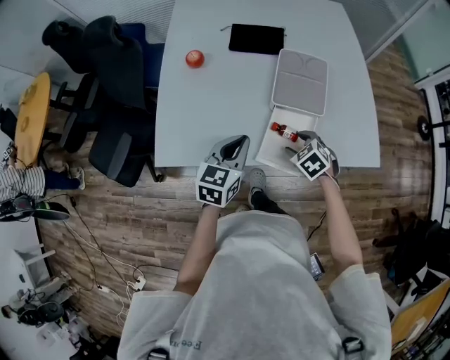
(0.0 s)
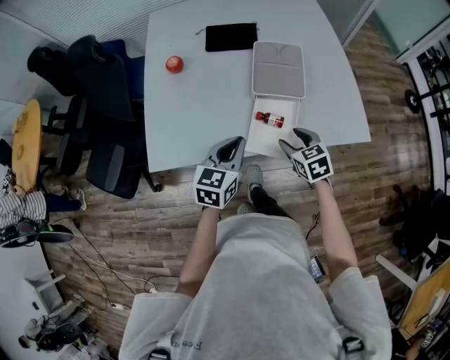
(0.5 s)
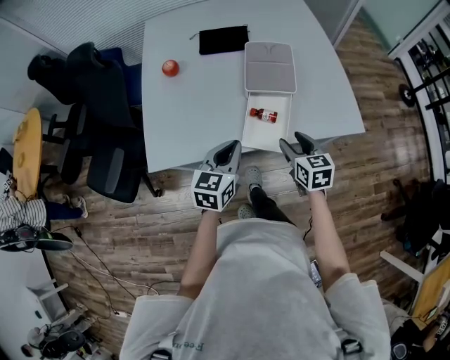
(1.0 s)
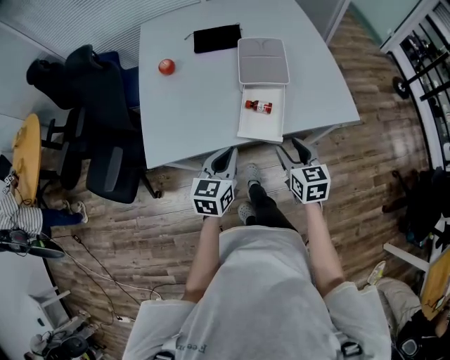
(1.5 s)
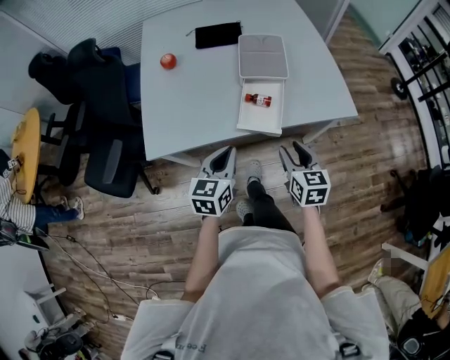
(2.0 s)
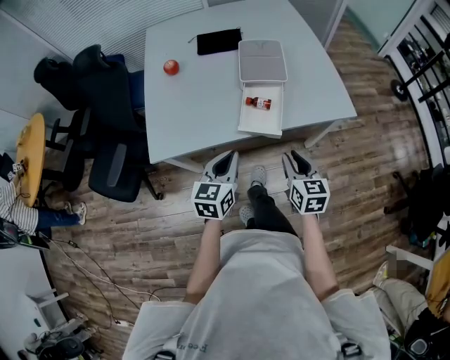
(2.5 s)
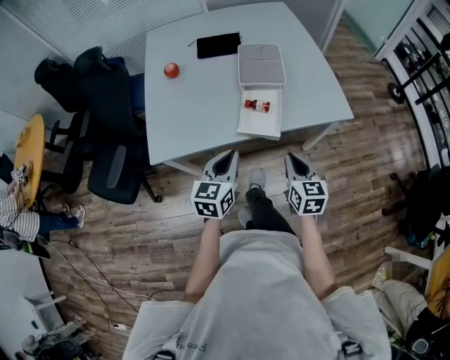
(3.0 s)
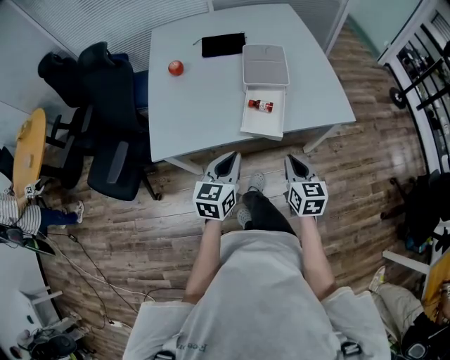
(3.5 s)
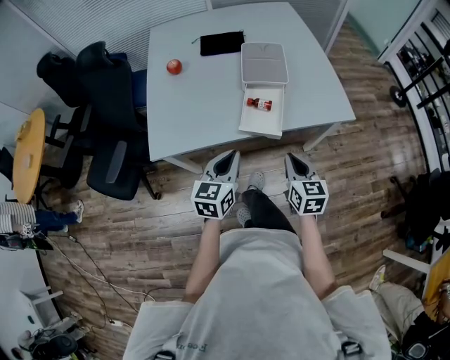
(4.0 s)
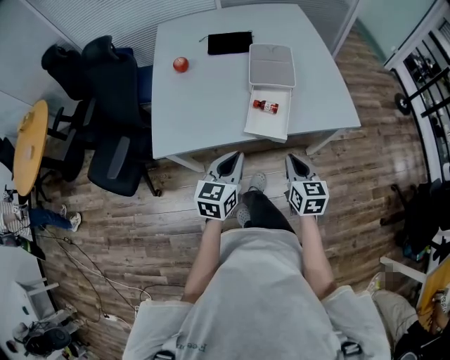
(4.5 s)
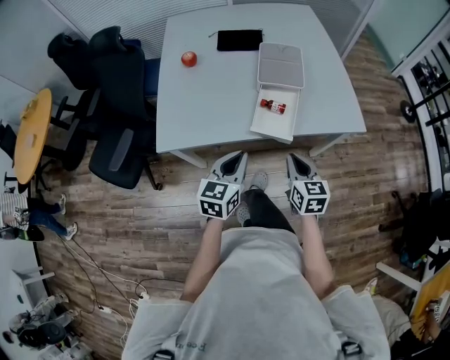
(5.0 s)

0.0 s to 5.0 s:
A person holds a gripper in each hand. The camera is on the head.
0.0 to 2.5 s: The left gripper goes approximately 15 cm backward; the right gripper travels backward and upward by some 25 cm, points its fingers about 40 degrees further upward, and closes up.
2.5 to 5.0 s: The right gripper closes.

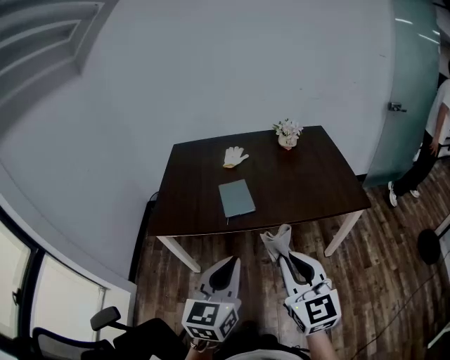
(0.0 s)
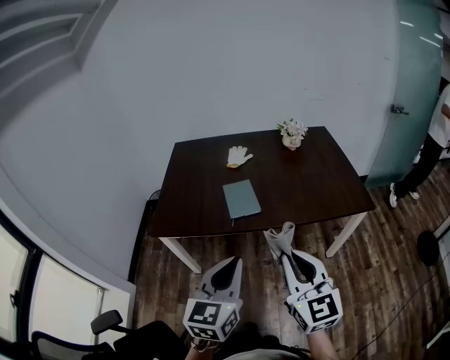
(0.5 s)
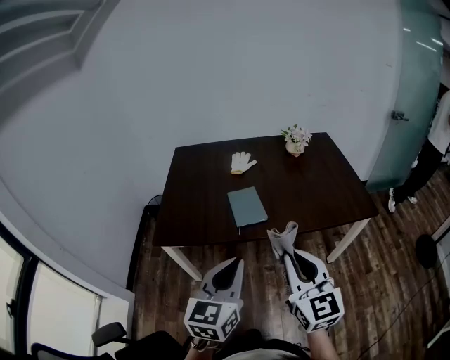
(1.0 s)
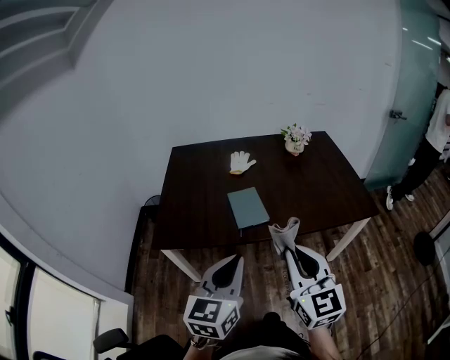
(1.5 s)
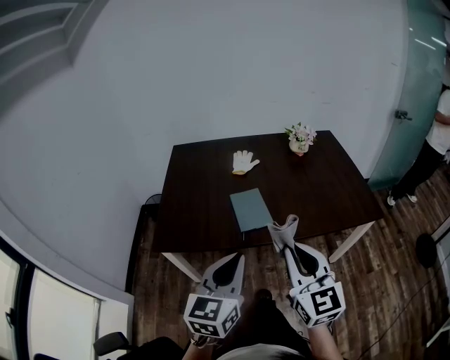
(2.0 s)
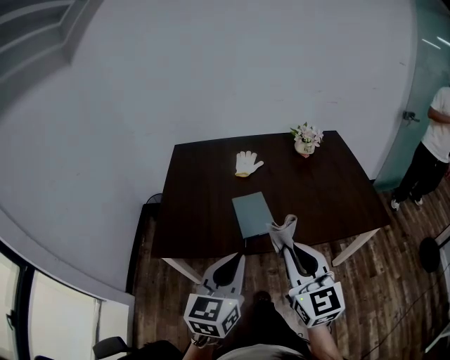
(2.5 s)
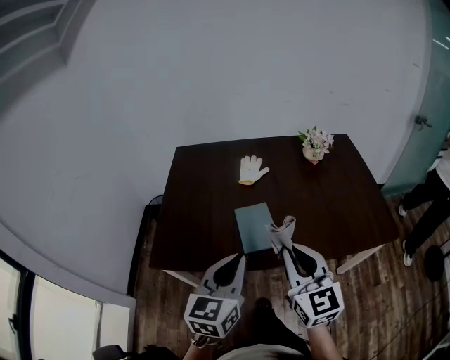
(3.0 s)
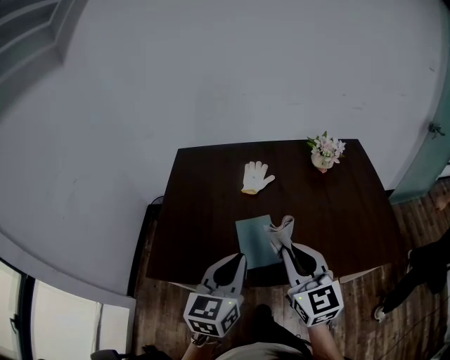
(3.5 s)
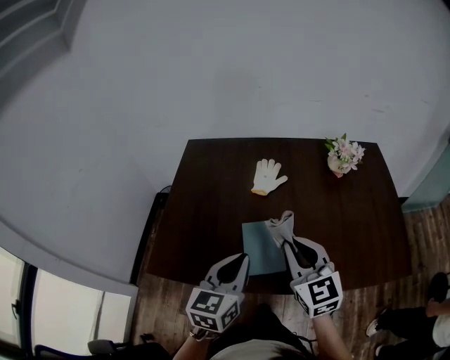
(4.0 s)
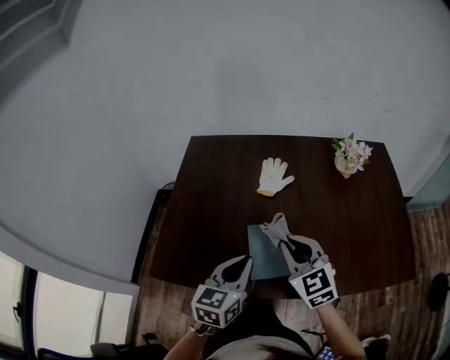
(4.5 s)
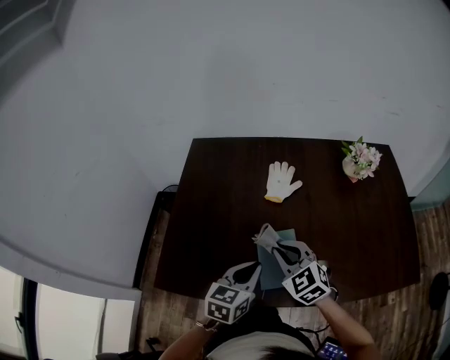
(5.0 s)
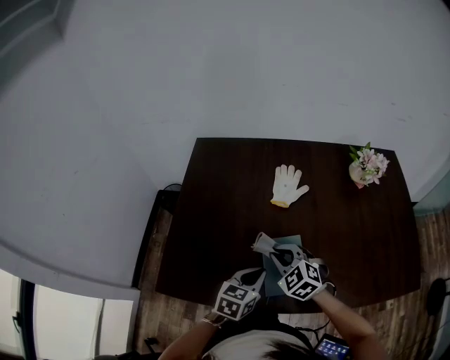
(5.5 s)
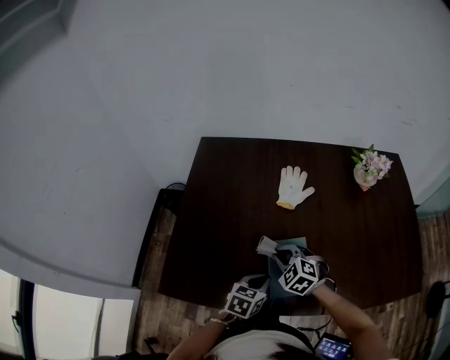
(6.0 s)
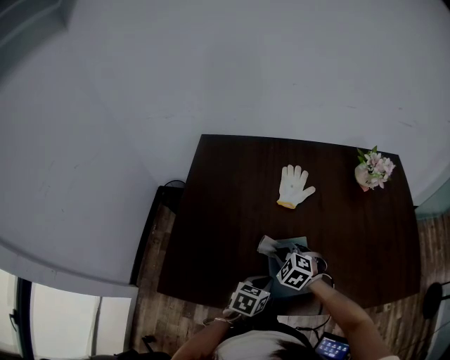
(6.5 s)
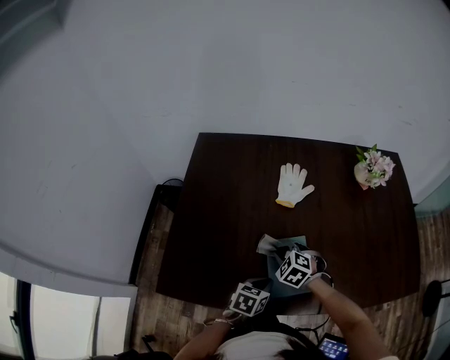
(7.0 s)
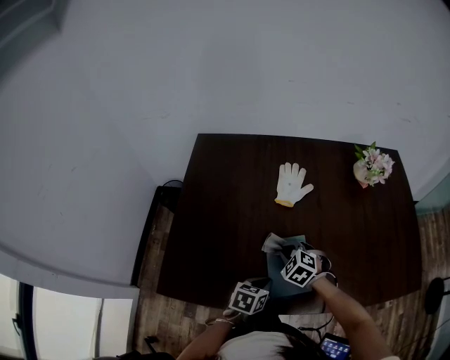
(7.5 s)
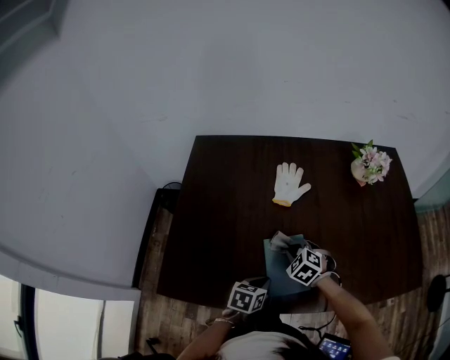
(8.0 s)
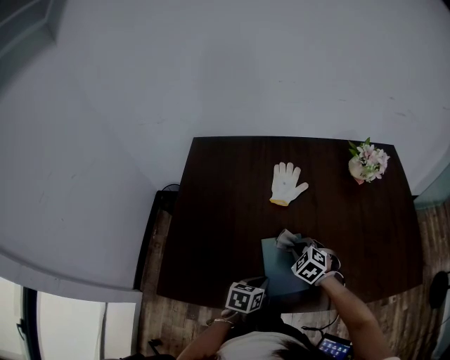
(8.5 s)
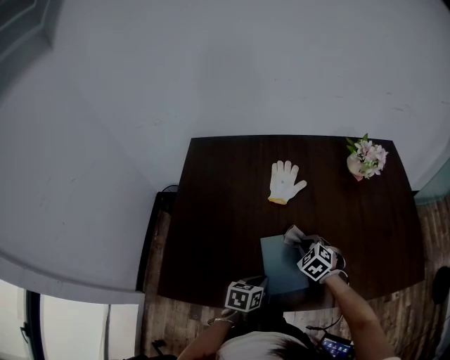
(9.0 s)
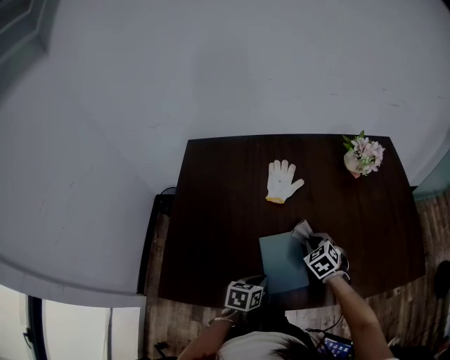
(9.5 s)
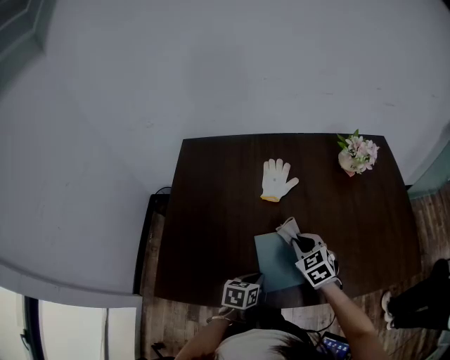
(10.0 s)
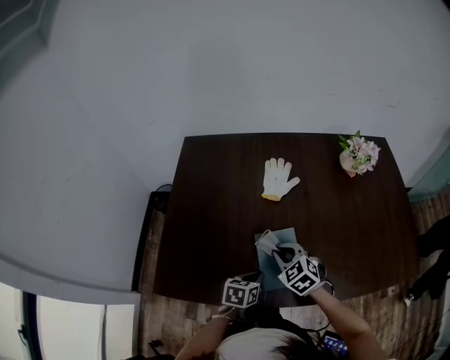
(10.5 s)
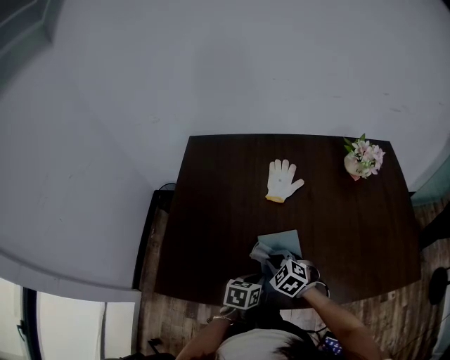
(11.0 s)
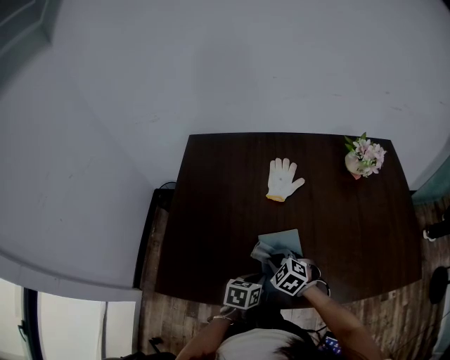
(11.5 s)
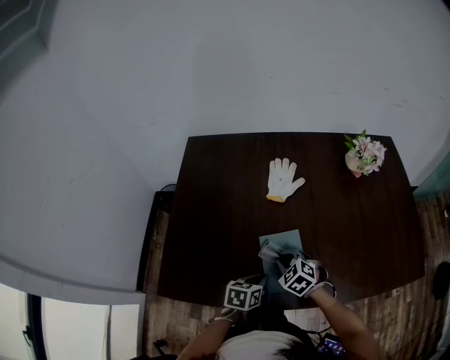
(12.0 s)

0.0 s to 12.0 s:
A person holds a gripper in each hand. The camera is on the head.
0.0 to 2.0 s: Both grippers travel together forward and to the left, approximately 15 cm.
2.0 to 4.0 s: Both grippers travel together forward, about 30 cm.
4.0 to 6.0 s: The left gripper heads downward, covering approximately 20 cm, and rotates approximately 30 degrees. The right gripper is displaced downward, to the left and forward by roughly 30 cm, and tilts its fingers about 40 degrees downward.
6.0 to 8.0 s: The right gripper is displaced to the right by roughly 5 cm.
8.0 to 10.0 s: The right gripper is displaced upward and to the right by about 10 cm, and turns by approximately 30 degrees.
10.0 to 12.0 s: The right gripper heads to the left and downward, covering roughly 10 cm, and turns by roughly 20 degrees.

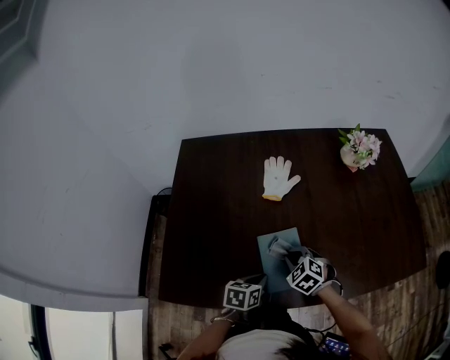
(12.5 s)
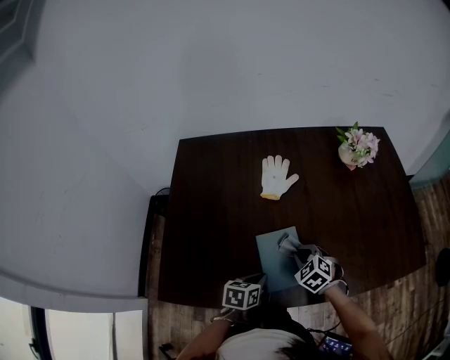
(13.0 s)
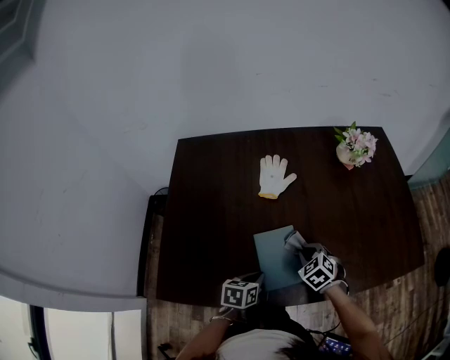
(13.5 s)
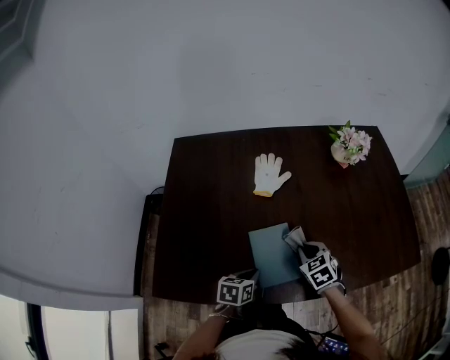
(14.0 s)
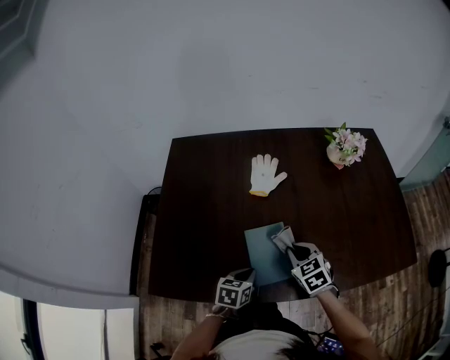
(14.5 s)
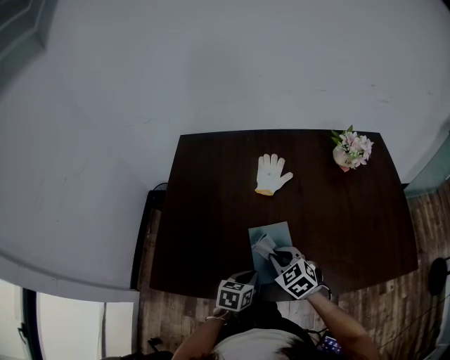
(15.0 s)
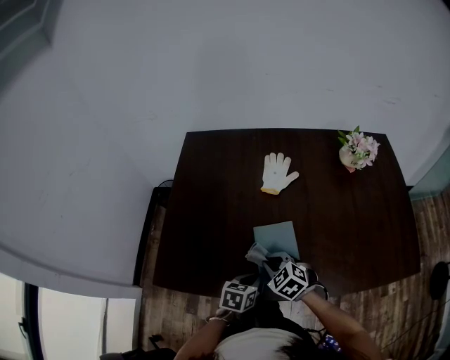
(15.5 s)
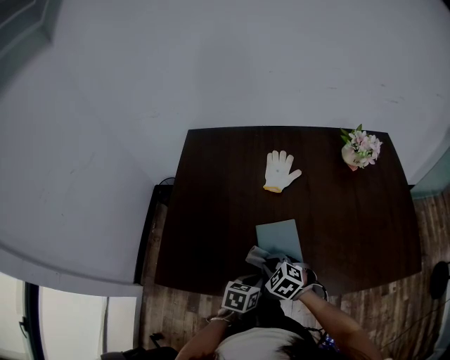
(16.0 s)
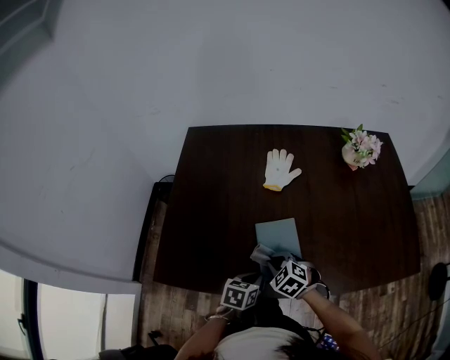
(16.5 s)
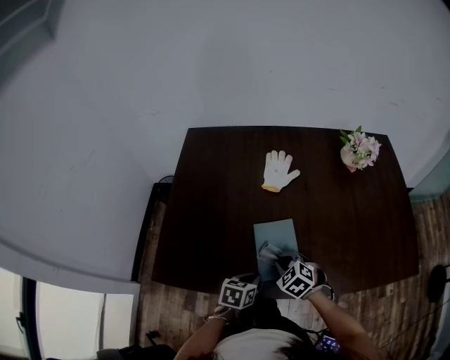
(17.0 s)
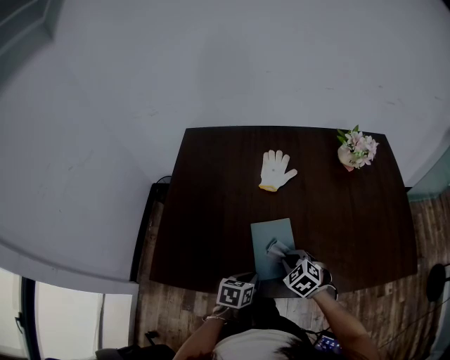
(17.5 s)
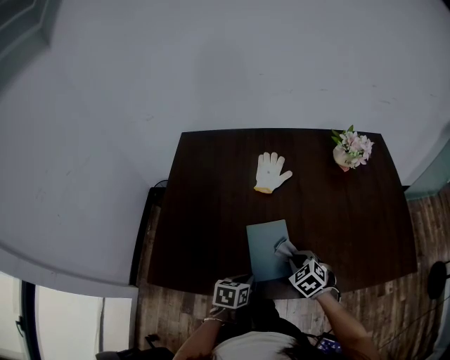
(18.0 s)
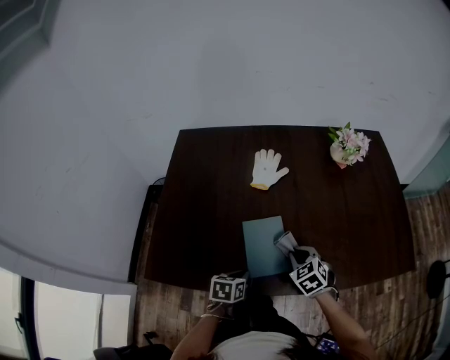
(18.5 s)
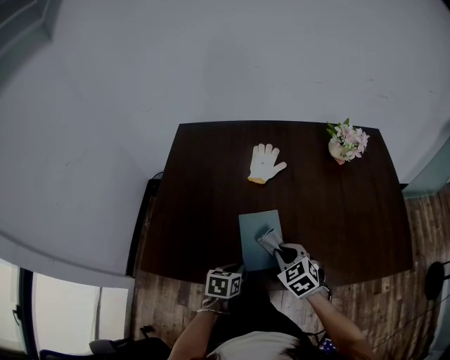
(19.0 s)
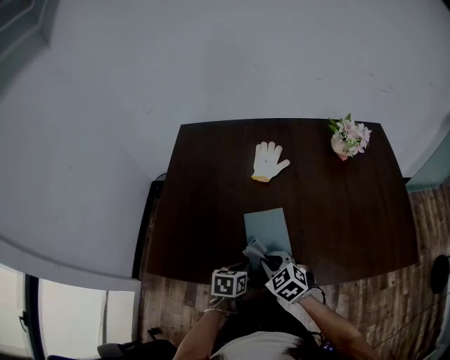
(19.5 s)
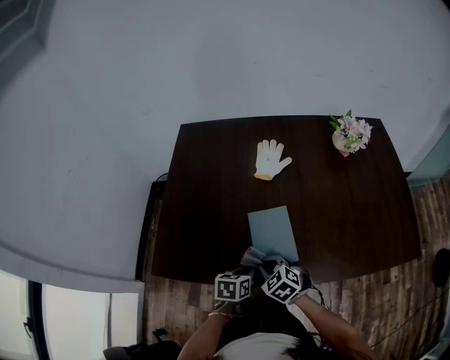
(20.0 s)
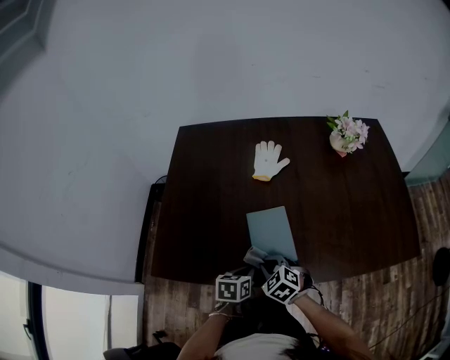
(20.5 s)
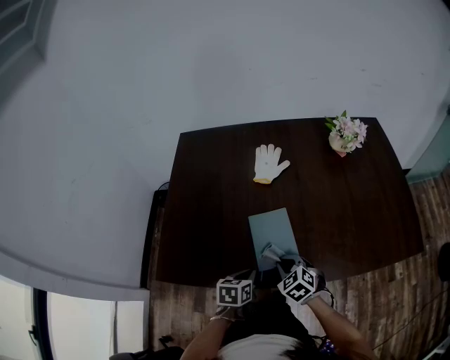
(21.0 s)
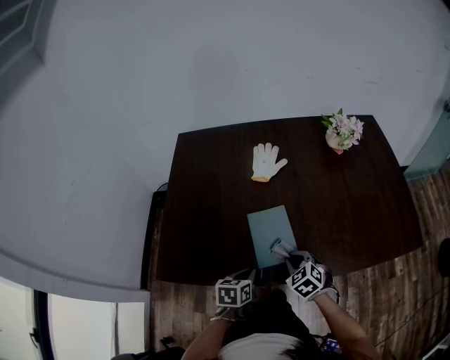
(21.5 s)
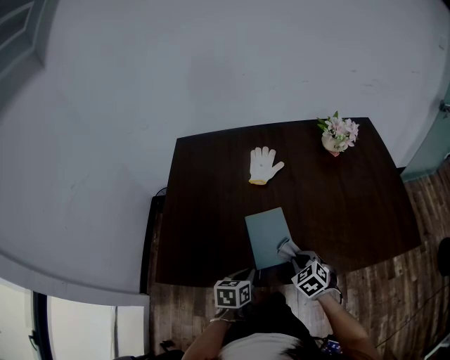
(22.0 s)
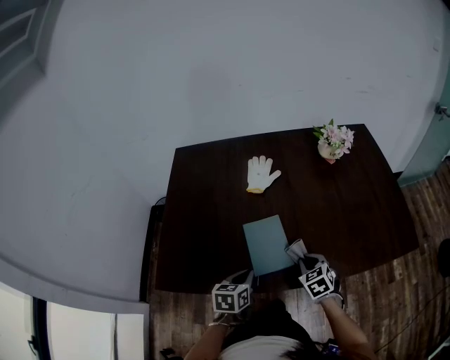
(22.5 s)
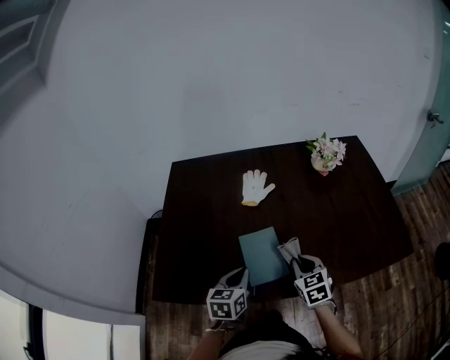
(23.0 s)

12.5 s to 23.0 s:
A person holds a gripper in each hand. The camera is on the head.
12.5 to 14.5 s: The right gripper shifts some 10 cm to the right and upward, and turns by about 20 degrees.
14.5 to 16.5 s: The right gripper shifts about 10 cm to the left and backward, and changes its angle by some 30 degrees.
16.5 to 19.0 s: The right gripper goes roughly 10 cm to the right and upward.
19.0 to 21.0 s: The right gripper shifts about 5 cm downward.
21.0 to 23.0 s: The left gripper travels upward by some 10 cm, and changes its angle by some 20 degrees, while the right gripper goes some 15 cm to the right and upward, and swivels some 30 degrees.
